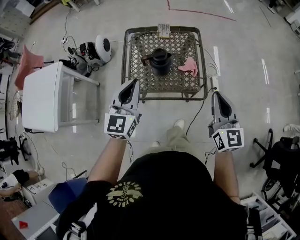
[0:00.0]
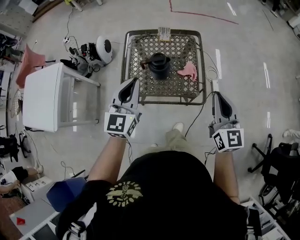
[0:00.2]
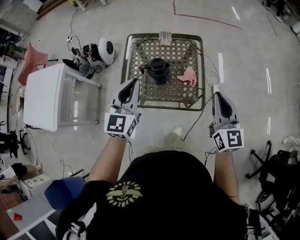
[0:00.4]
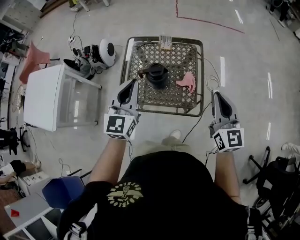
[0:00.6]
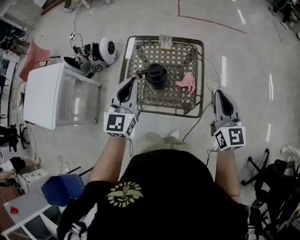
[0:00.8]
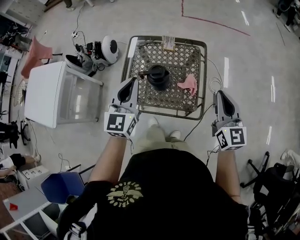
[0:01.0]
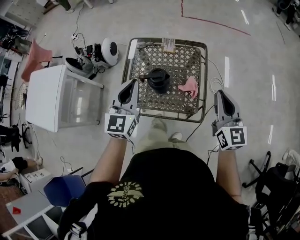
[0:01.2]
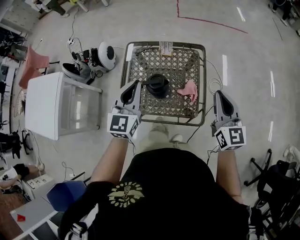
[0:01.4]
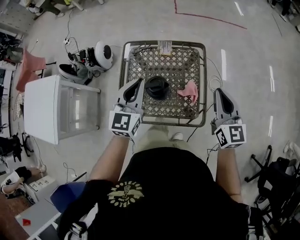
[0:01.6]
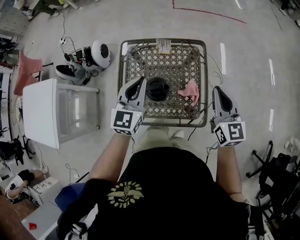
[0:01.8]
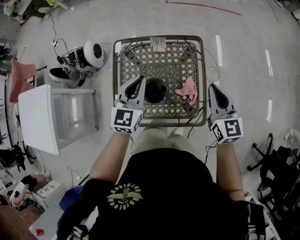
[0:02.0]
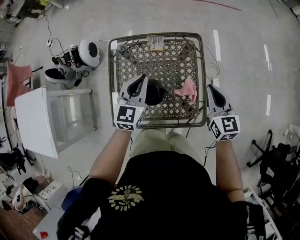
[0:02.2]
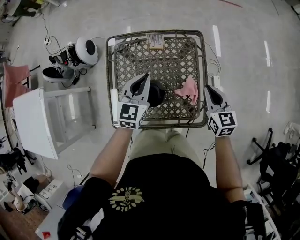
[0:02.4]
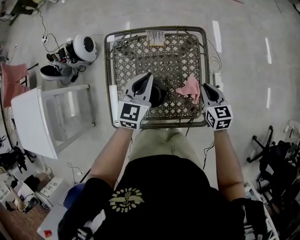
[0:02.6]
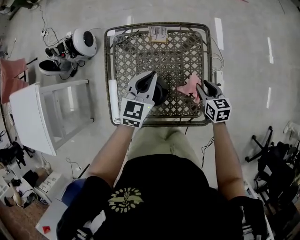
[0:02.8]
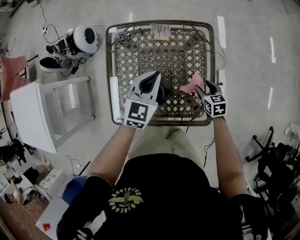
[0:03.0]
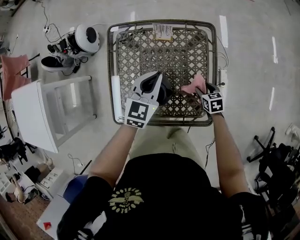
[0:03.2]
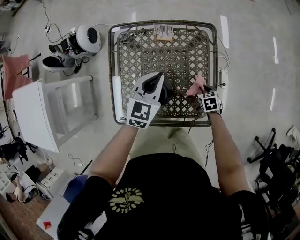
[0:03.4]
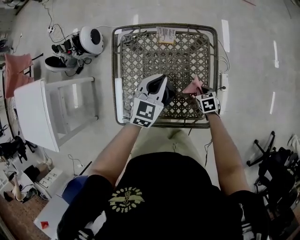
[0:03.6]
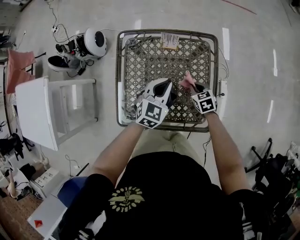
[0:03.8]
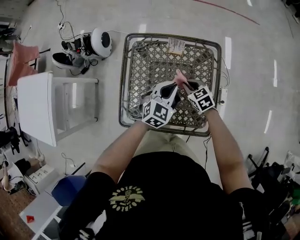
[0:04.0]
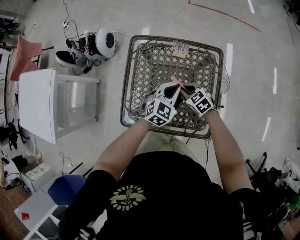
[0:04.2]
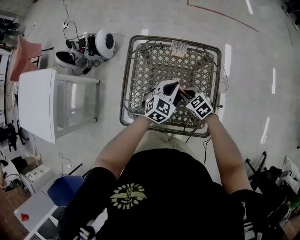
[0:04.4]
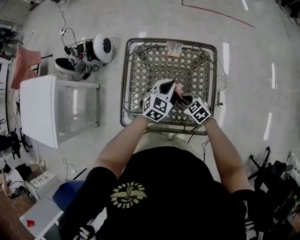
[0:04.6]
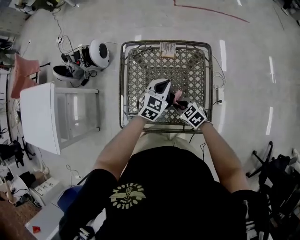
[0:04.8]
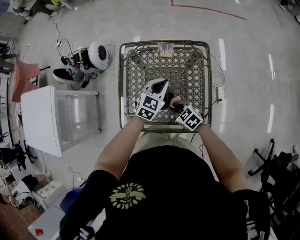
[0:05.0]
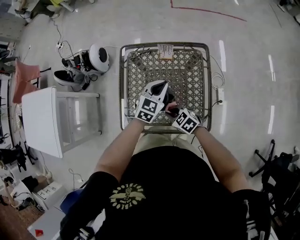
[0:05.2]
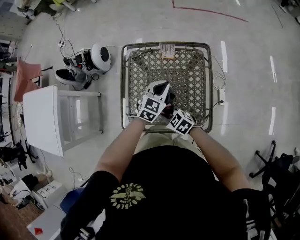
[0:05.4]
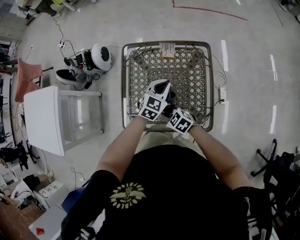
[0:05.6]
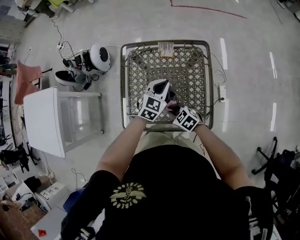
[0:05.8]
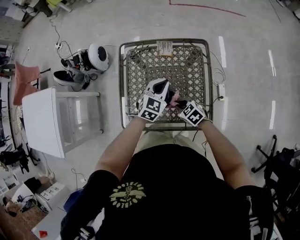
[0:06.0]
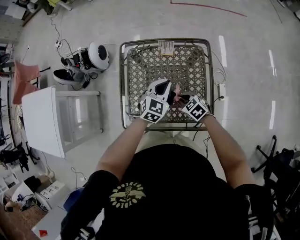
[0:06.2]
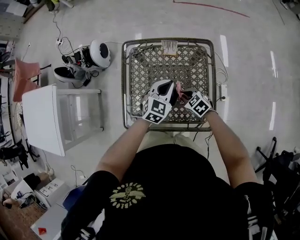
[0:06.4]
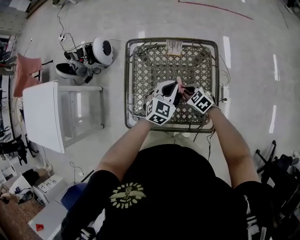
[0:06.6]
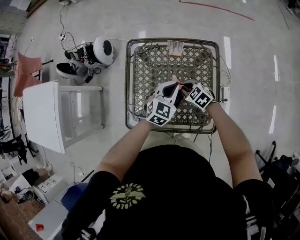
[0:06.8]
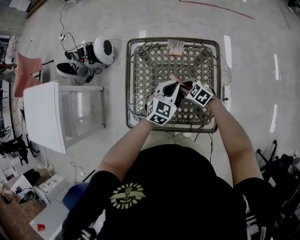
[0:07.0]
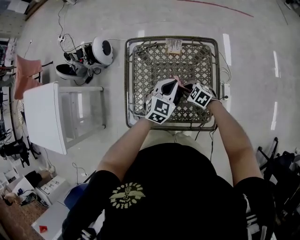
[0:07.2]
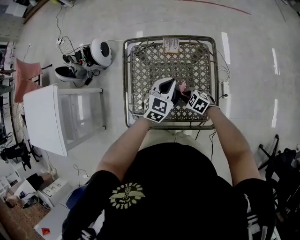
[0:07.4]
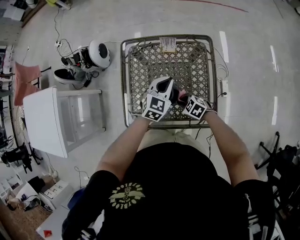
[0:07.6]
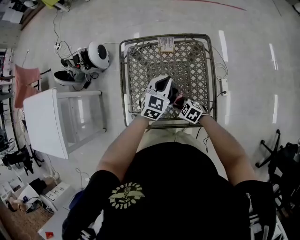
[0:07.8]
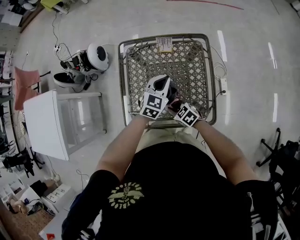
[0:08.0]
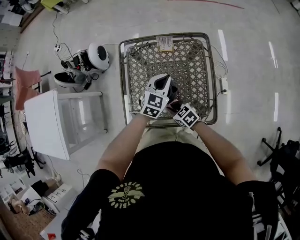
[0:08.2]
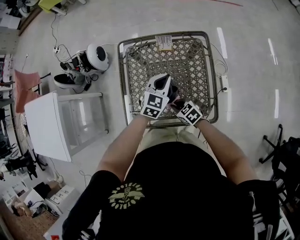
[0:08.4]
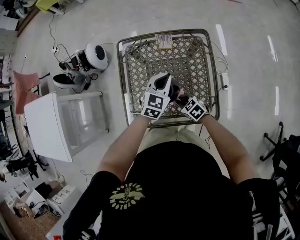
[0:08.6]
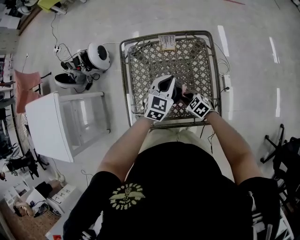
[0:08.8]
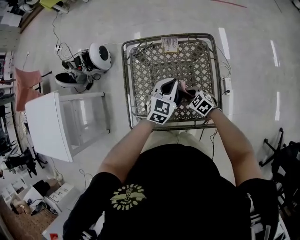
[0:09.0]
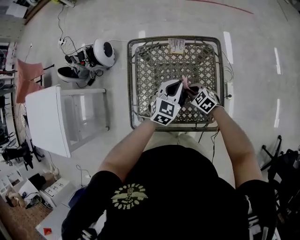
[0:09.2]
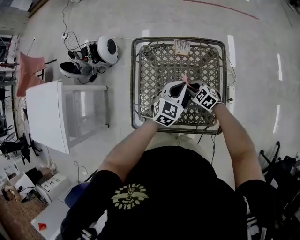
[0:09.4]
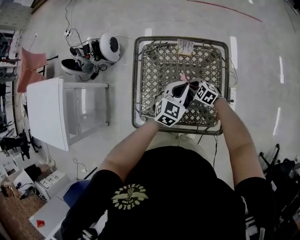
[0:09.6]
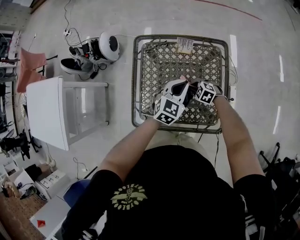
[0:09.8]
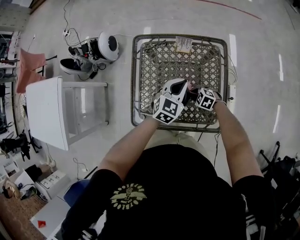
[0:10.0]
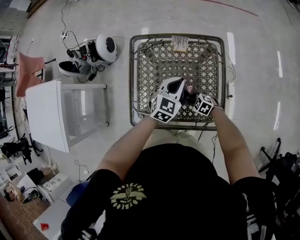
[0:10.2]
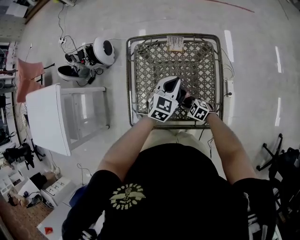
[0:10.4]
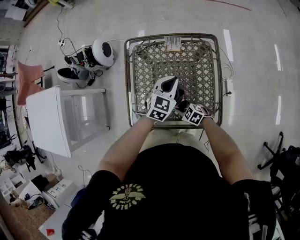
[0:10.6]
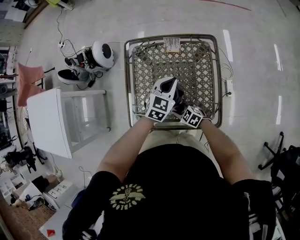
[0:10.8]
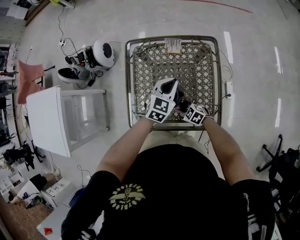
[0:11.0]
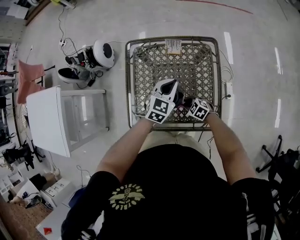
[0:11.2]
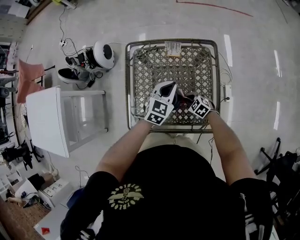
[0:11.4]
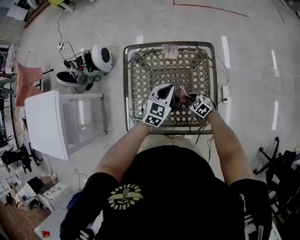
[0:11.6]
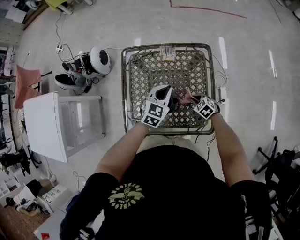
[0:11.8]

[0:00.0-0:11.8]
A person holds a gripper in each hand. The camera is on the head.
0:00.0 to 0:01.4: The two grippers go some 15 cm forward.
0:01.4 to 0:03.0: The left gripper heads downward and forward, covering approximately 25 cm, and swivels approximately 20 degrees. The right gripper is displaced downward by approximately 35 cm, tilts its fingers about 40 degrees downward, and opens up.
0:03.0 to 0:04.4: The right gripper shifts roughly 15 cm to the left, turns by some 40 degrees, and closes its fingers.
0:04.4 to 0:06.0: The right gripper shifts some 10 cm backward, and reaches some 10 cm to the left, then returns.
0:06.0 to 0:07.4: The right gripper goes forward and returns, roughly 10 cm each way.
0:07.4 to 0:08.8: The right gripper moves some 10 cm to the left and comes back.
0:08.8 to 0:10.4: The right gripper moves downward, roughly 5 cm, and goes forward and returns, about 10 cm each way.
0:10.4 to 0:11.8: The right gripper travels to the right by roughly 15 cm.

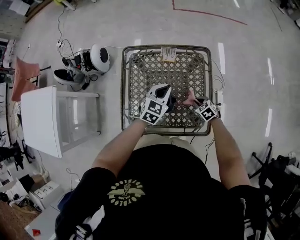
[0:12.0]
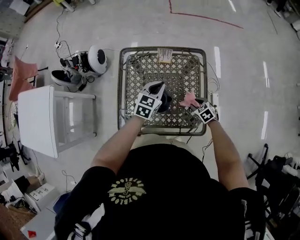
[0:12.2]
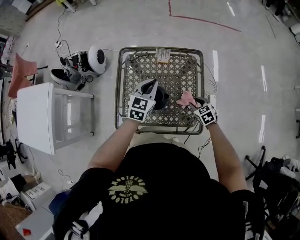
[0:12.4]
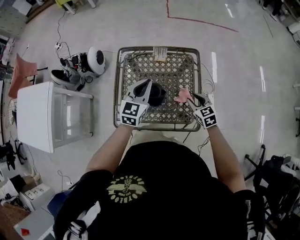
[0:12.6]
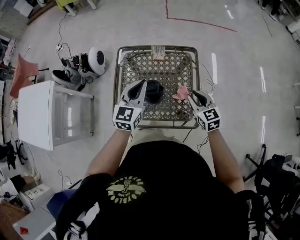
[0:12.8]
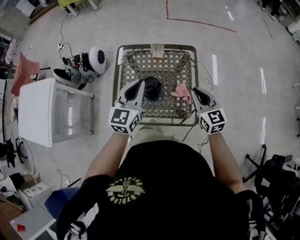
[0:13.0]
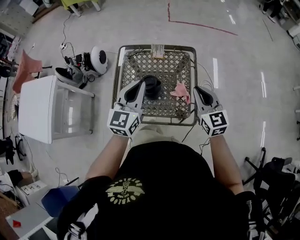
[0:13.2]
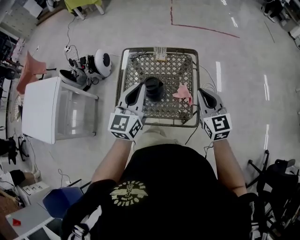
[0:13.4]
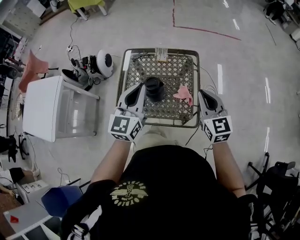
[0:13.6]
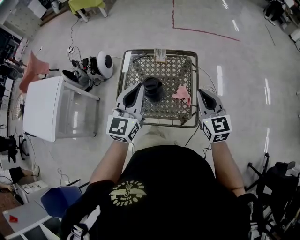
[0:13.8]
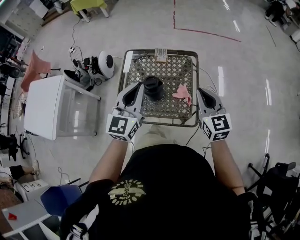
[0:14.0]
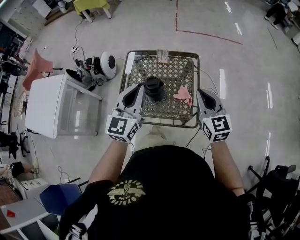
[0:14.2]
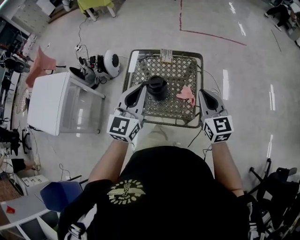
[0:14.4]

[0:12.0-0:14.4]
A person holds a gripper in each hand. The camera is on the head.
0:12.0 to 0:13.2: The right gripper is displaced upward by about 35 cm, points its fingers about 50 degrees further upward, and opens, then closes once more, while the left gripper shifts some 25 cm upward and backward, and swivels about 30 degrees.
0:13.2 to 0:14.4: The right gripper heads upward, covering some 5 cm. Meanwhile the left gripper travels backward and upward by some 10 cm.

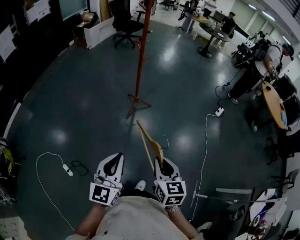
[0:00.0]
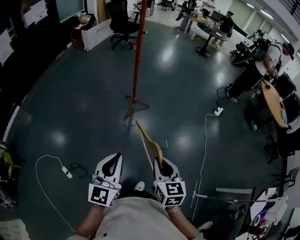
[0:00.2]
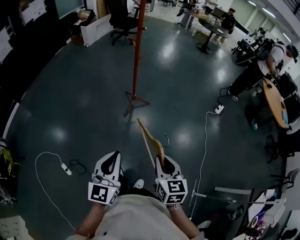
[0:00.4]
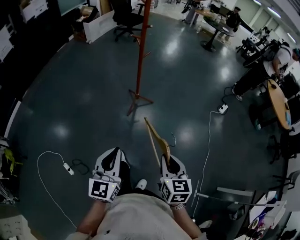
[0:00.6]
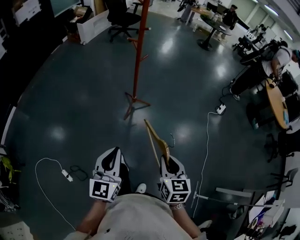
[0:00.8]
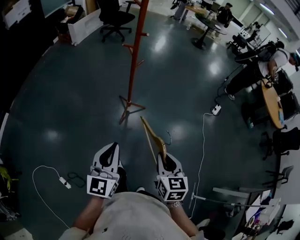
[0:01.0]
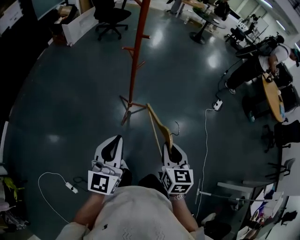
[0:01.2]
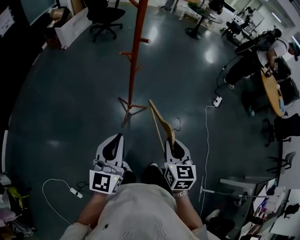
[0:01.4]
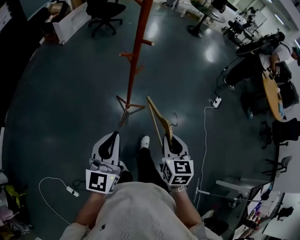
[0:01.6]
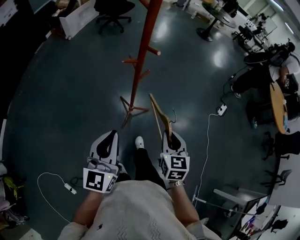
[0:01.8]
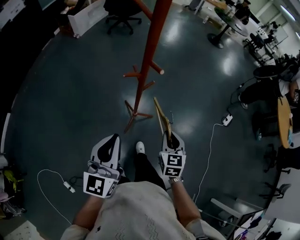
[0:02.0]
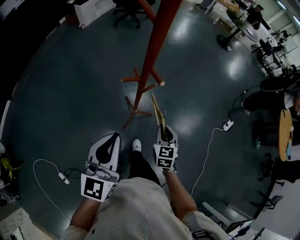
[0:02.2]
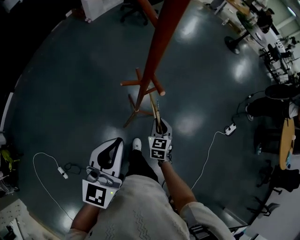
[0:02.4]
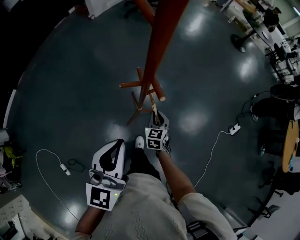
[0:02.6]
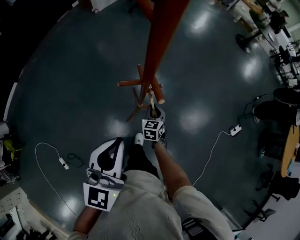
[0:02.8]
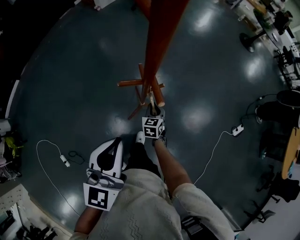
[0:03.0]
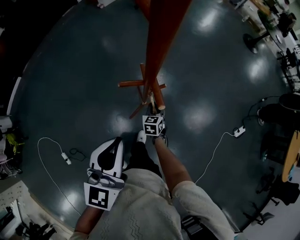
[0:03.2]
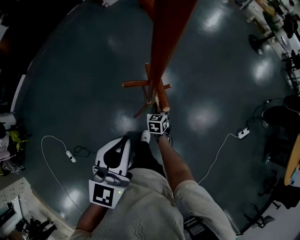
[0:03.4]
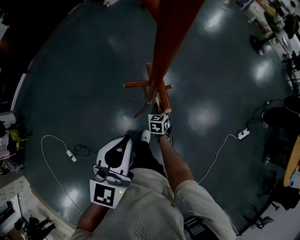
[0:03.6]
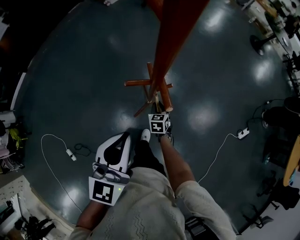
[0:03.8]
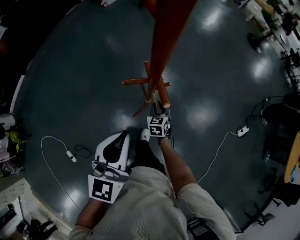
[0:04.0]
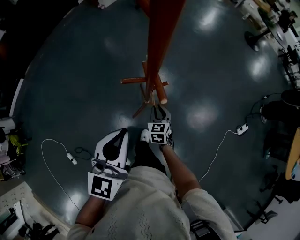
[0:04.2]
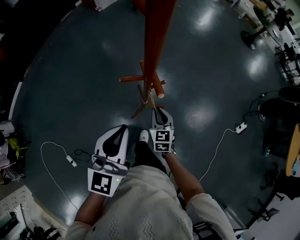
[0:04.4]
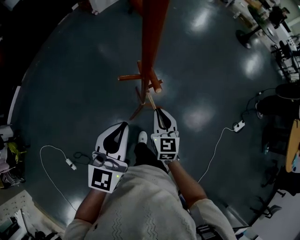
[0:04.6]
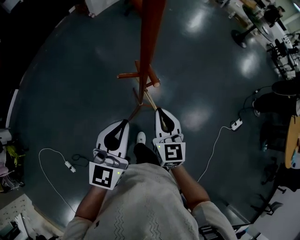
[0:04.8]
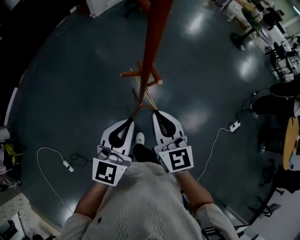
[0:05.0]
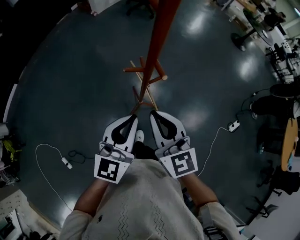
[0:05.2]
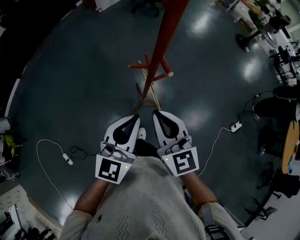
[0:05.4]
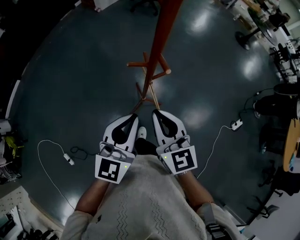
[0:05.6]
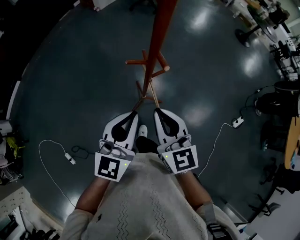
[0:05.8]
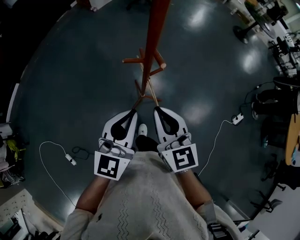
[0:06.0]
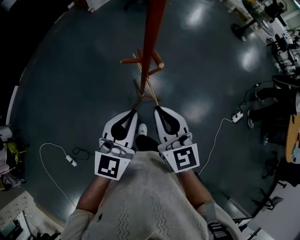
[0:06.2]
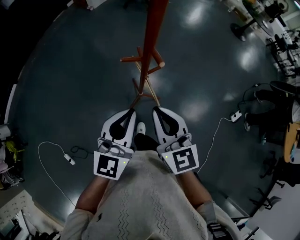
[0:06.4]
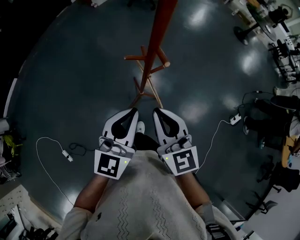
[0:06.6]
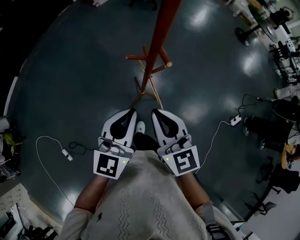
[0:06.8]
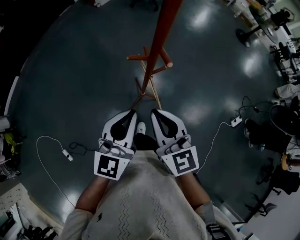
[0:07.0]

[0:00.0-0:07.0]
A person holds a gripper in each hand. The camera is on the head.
0:00.0 to 0:01.4: Both grippers travel together forward, some 40 cm.
0:01.4 to 0:02.8: The left gripper travels forward by about 30 cm, and rotates approximately 20 degrees, while the right gripper shifts approximately 50 cm forward and downward, and changes its angle by approximately 20 degrees.
0:04.2 to 0:05.6: The right gripper heads upward, covering roughly 30 cm, and swivels roughly 30 degrees.
0:05.6 to 0:07.0: The grippers stay close to where they were, moving slightly.

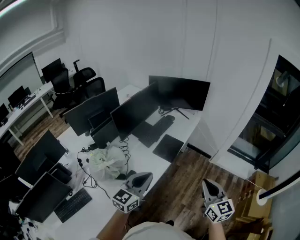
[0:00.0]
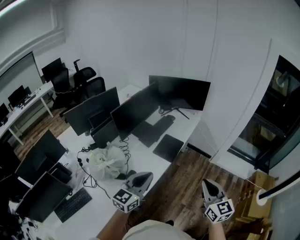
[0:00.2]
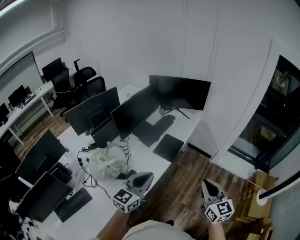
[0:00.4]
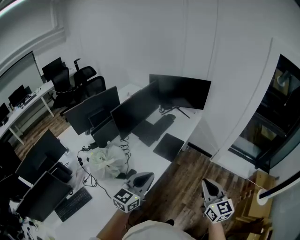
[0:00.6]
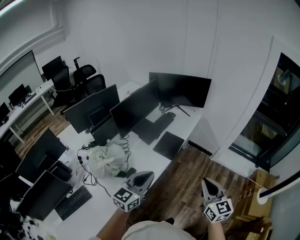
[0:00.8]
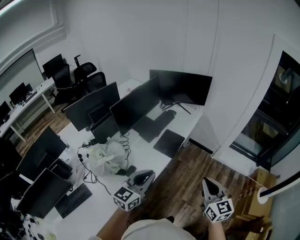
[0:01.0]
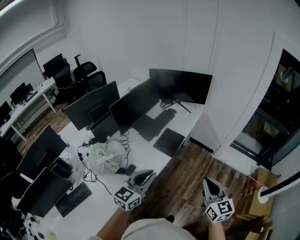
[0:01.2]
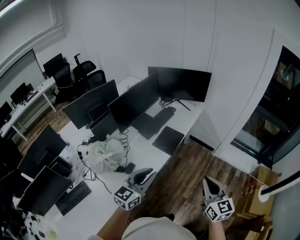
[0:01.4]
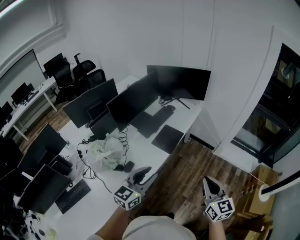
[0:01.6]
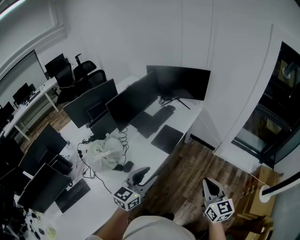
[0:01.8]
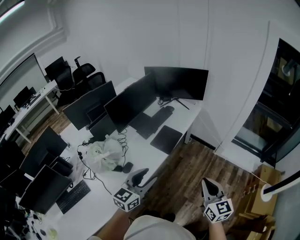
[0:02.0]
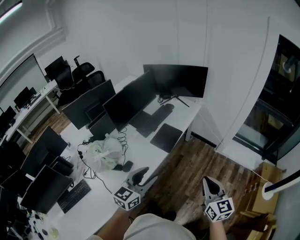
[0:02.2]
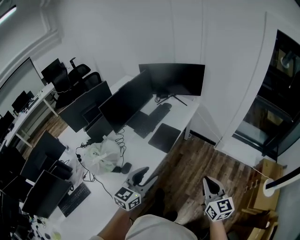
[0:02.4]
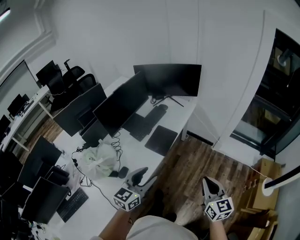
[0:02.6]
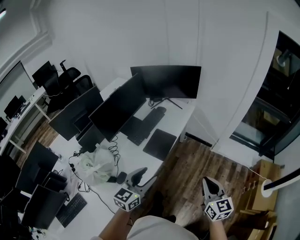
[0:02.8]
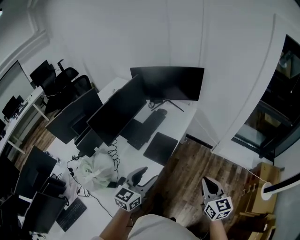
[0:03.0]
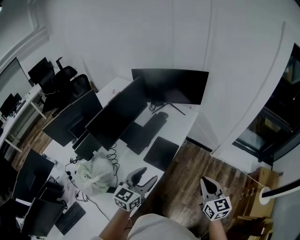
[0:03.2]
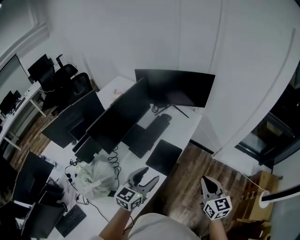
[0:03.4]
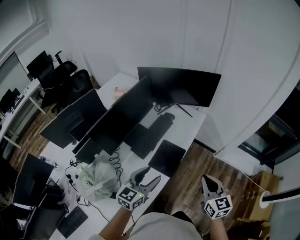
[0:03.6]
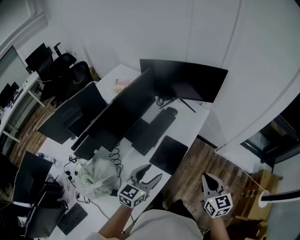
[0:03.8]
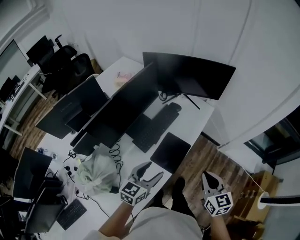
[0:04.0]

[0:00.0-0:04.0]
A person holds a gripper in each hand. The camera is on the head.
0:00.0 to 0:01.4: The grippers make only small movements.
0:01.4 to 0:02.6: The left gripper goes some 5 cm forward and to the right. Meanwhile the right gripper travels to the right by roughly 5 cm.
0:02.6 to 0:04.0: The two grippers go roughly 30 cm forward and to the left.
